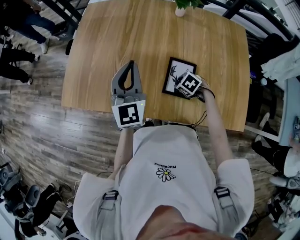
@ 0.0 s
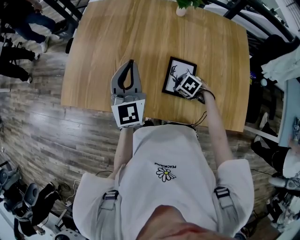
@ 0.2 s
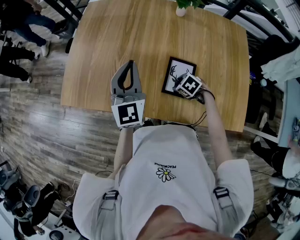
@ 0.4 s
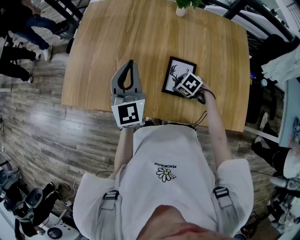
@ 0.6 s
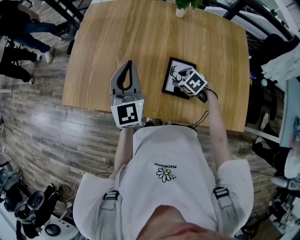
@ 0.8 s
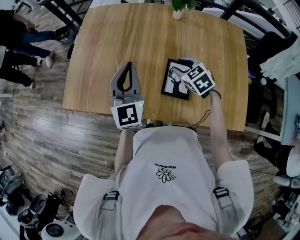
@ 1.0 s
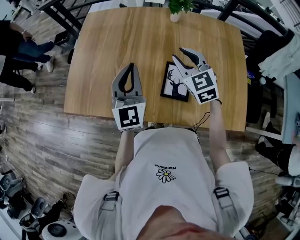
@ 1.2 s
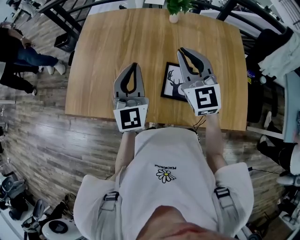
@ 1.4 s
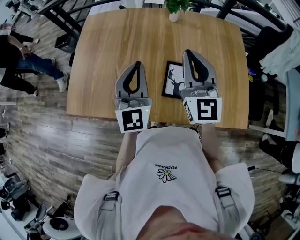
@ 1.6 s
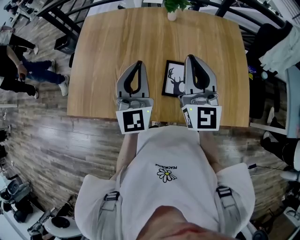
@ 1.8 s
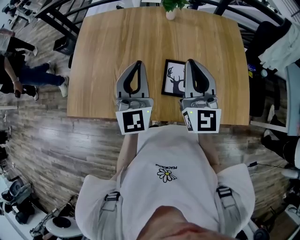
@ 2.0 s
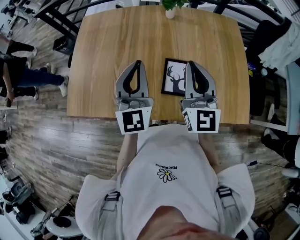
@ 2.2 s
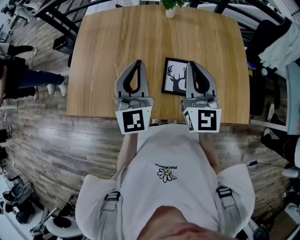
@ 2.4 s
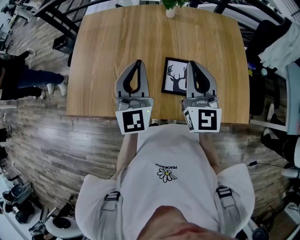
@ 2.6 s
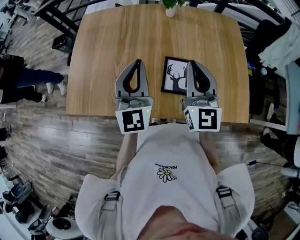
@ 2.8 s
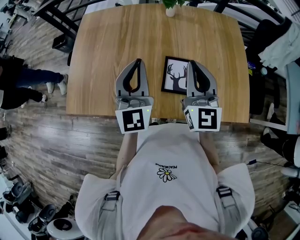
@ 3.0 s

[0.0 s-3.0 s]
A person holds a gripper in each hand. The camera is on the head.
0.0 to 1.6 s: The right gripper heads upward, covering about 40 cm, tilts its fingers roughly 80 degrees upward, and closes up. Meanwhile the left gripper shifts approximately 5 cm upward.
1.6 to 3.0 s: The right gripper moves approximately 5 cm.

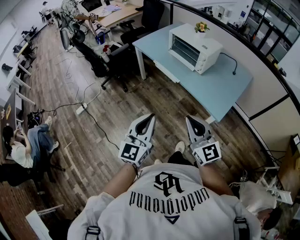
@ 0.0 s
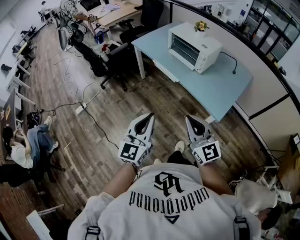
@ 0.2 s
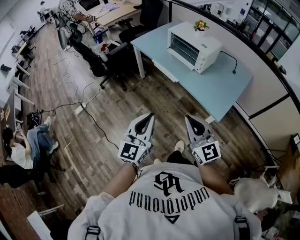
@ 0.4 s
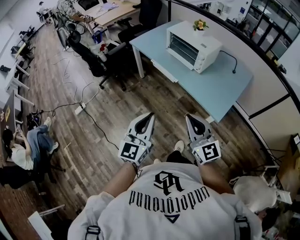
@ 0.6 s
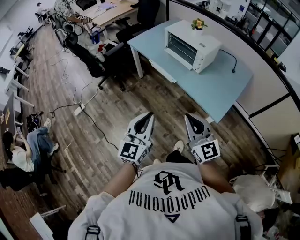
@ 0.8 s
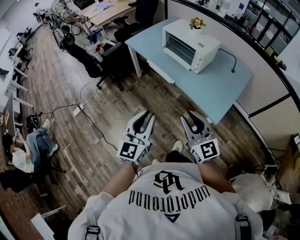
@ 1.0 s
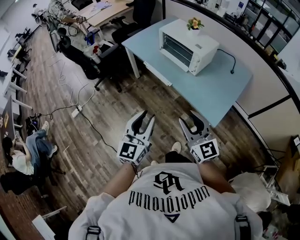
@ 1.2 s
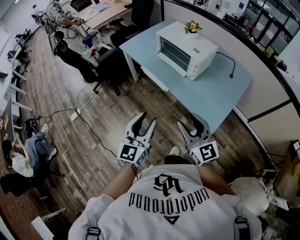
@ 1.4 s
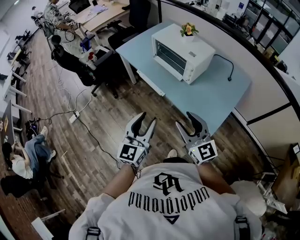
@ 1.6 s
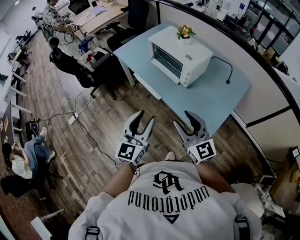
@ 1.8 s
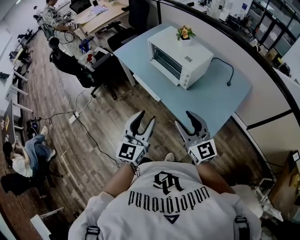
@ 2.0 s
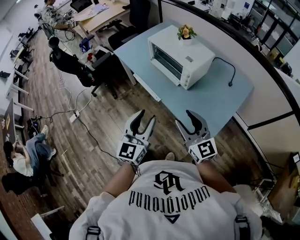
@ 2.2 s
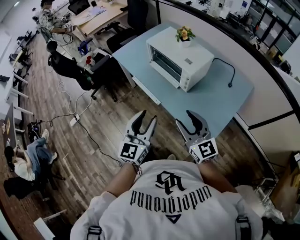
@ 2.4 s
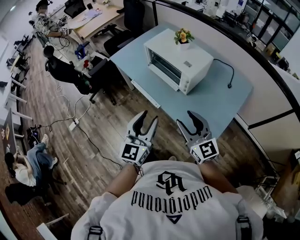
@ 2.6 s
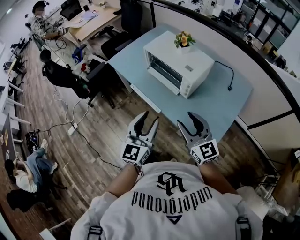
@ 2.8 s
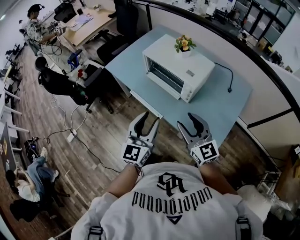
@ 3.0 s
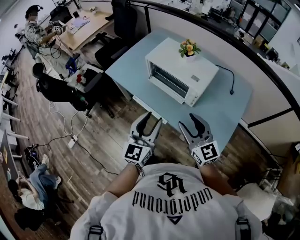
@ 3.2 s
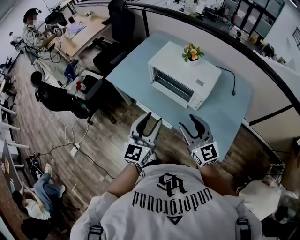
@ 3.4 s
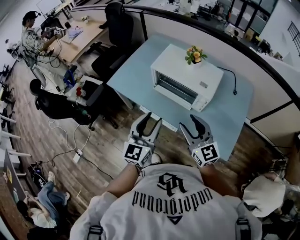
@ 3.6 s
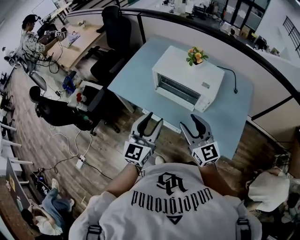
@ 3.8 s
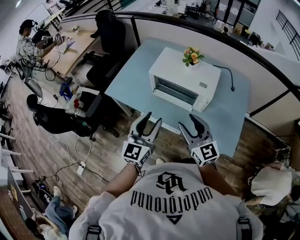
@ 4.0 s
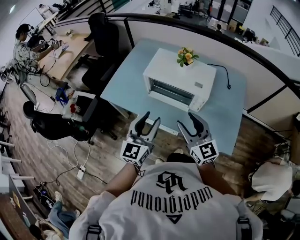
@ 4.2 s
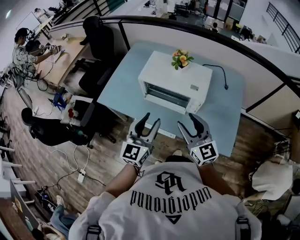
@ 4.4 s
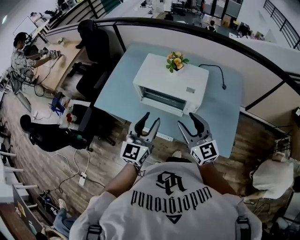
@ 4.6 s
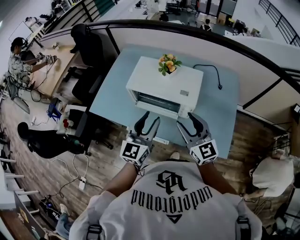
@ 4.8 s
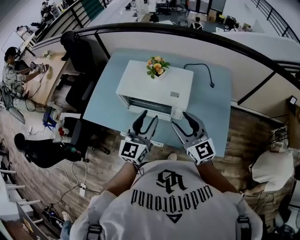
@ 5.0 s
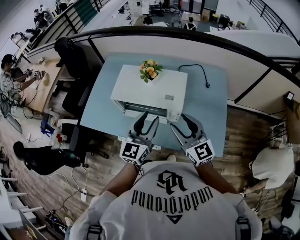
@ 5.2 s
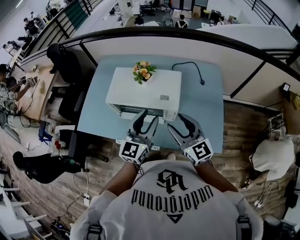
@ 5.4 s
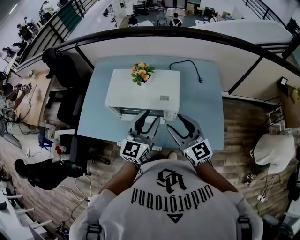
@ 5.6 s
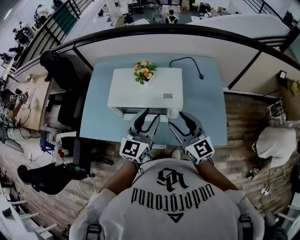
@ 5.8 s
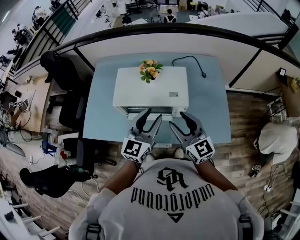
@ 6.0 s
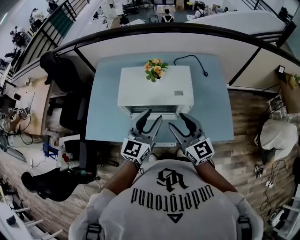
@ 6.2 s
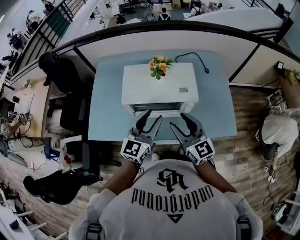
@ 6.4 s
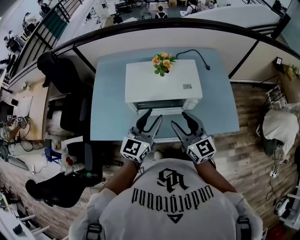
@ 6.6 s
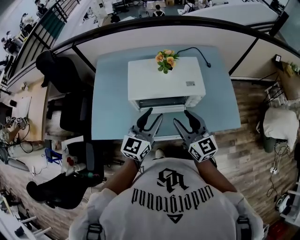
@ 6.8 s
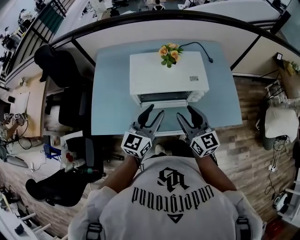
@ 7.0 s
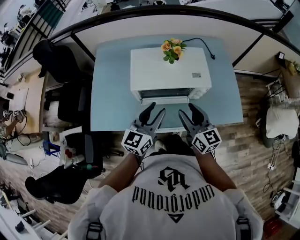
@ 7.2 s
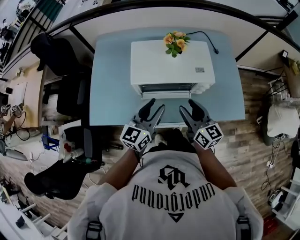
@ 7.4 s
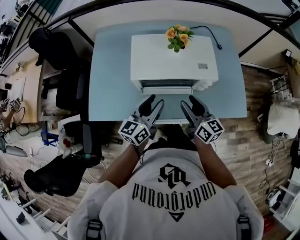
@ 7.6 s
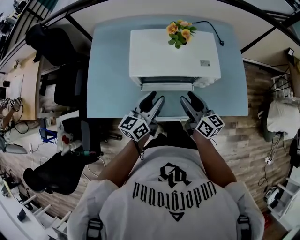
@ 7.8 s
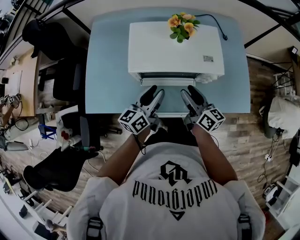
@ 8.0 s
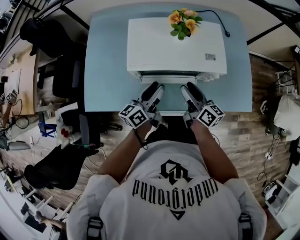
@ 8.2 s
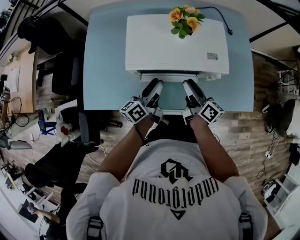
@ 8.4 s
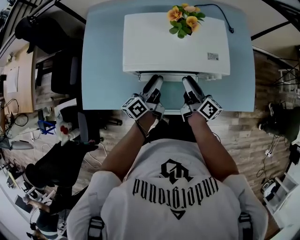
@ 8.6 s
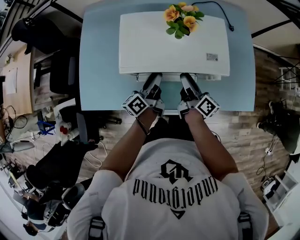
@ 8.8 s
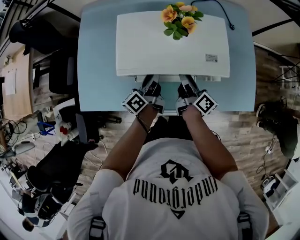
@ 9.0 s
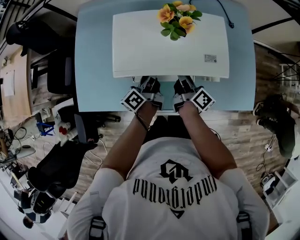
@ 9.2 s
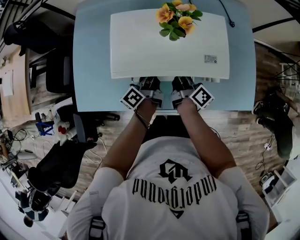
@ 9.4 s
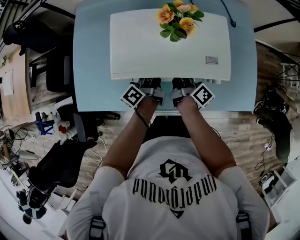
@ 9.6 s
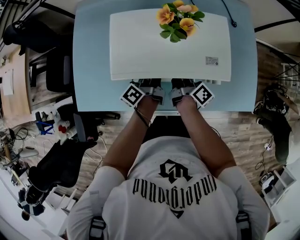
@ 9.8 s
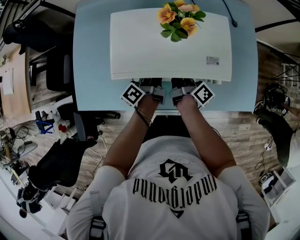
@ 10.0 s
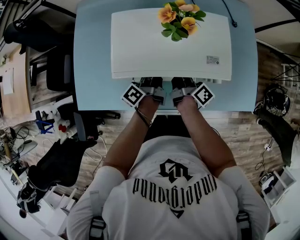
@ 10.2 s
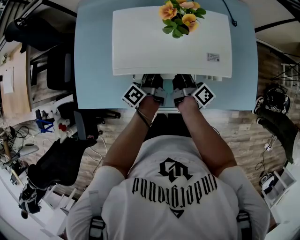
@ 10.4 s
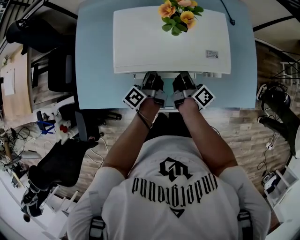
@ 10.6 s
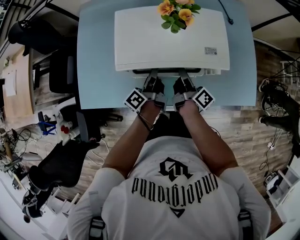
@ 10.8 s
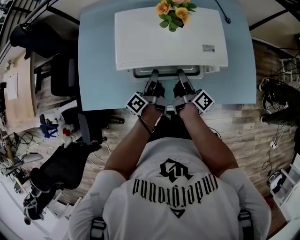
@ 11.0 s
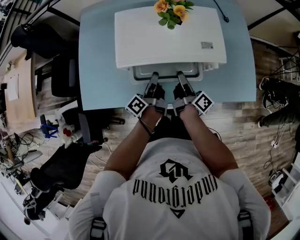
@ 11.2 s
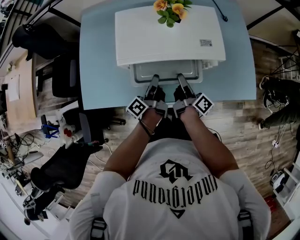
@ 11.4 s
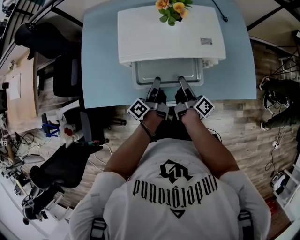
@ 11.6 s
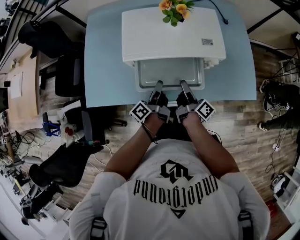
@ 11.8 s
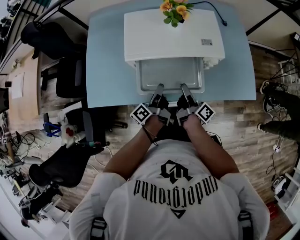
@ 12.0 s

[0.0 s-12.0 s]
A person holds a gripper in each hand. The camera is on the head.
0.0 to 1.6 s: Both grippers travel together forward and to the right, approximately 20 cm. The left gripper opens its fingers. Meanwhile the right gripper opens up.
1.6 to 3.0 s: Both grippers travel together forward, about 20 cm.
3.0 to 4.4 s: Both grippers move forward and to the left, about 15 cm. The left gripper swivels approximately 20 degrees, while the right gripper rotates some 20 degrees.
4.4 to 6.0 s: The right gripper heads forward, covering approximately 10 cm. Meanwhile the left gripper heads forward and to the right, covering approximately 15 cm, and swivels roughly 20 degrees.
6.0 to 7.6 s: The left gripper is displaced to the left and downward by about 20 cm, and turns by some 30 degrees, while the right gripper goes about 15 cm downward and to the left, and rotates about 30 degrees.
7.6 to 9.0 s: The left gripper goes roughly 20 cm downward and forward, and twists approximately 40 degrees counterclockwise, seen from behind, while the right gripper heads forward and downward, covering about 15 cm, and swivels some 40 degrees.
9.0 to 10.4 s: The grippers make only small movements.
10.4 to 12.0 s: The grippers both shift backward by roughly 15 cm.

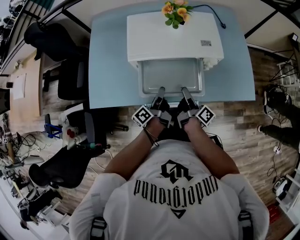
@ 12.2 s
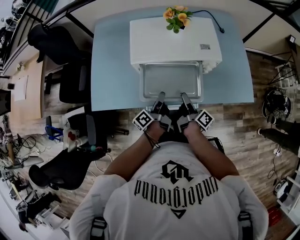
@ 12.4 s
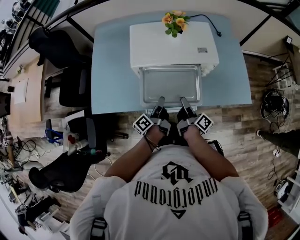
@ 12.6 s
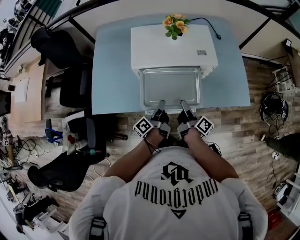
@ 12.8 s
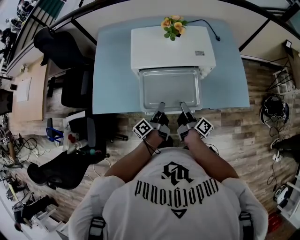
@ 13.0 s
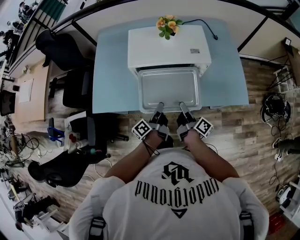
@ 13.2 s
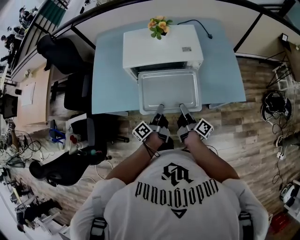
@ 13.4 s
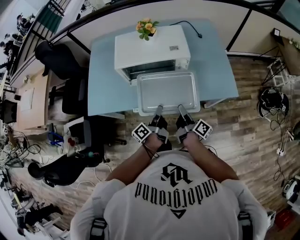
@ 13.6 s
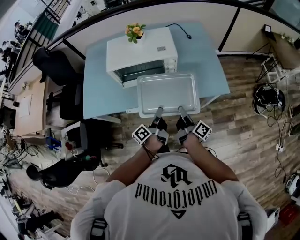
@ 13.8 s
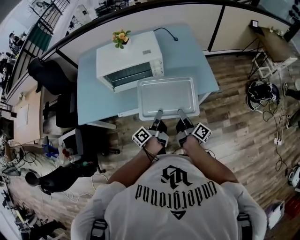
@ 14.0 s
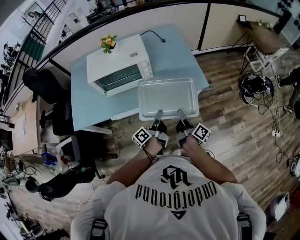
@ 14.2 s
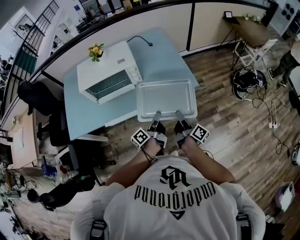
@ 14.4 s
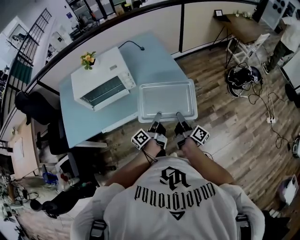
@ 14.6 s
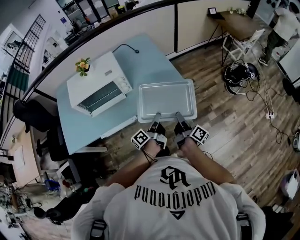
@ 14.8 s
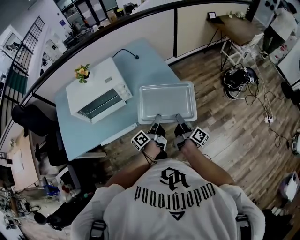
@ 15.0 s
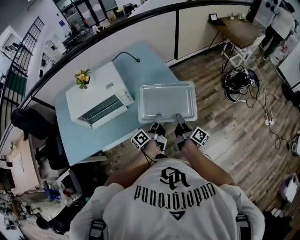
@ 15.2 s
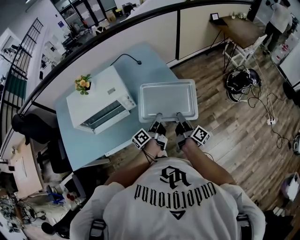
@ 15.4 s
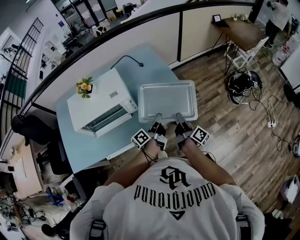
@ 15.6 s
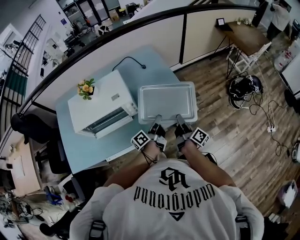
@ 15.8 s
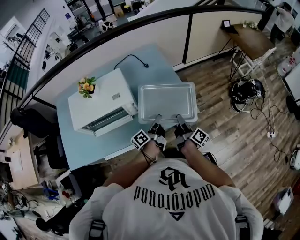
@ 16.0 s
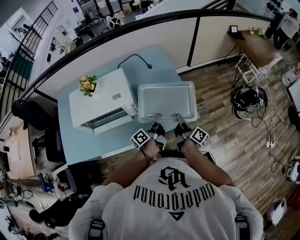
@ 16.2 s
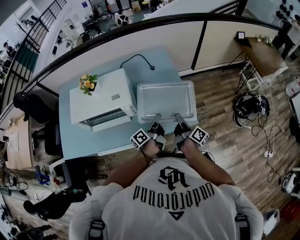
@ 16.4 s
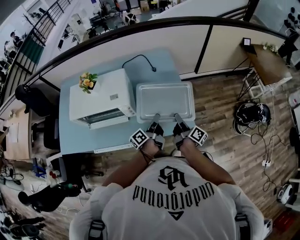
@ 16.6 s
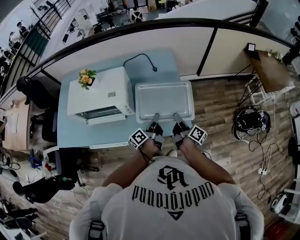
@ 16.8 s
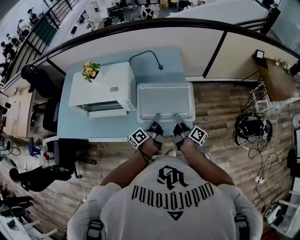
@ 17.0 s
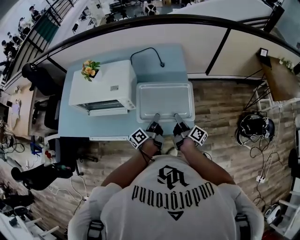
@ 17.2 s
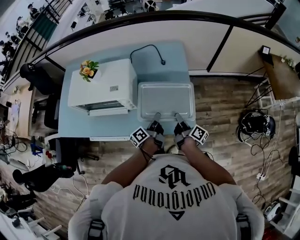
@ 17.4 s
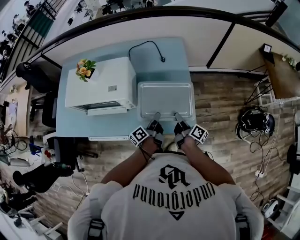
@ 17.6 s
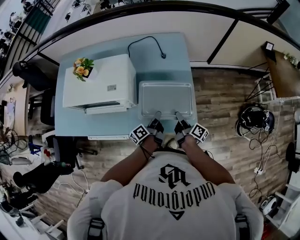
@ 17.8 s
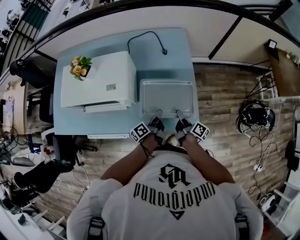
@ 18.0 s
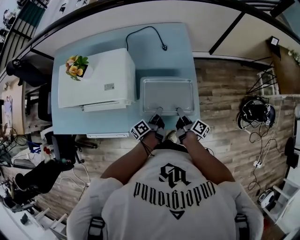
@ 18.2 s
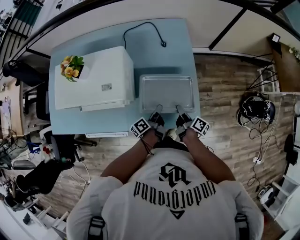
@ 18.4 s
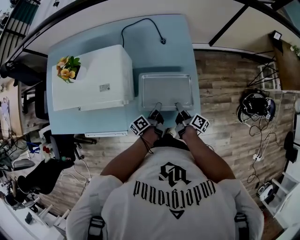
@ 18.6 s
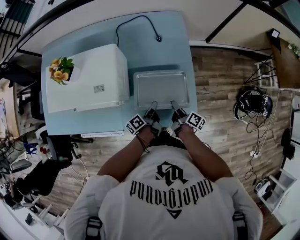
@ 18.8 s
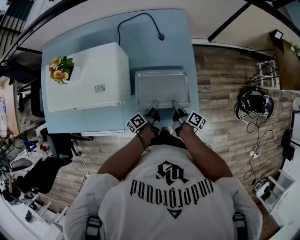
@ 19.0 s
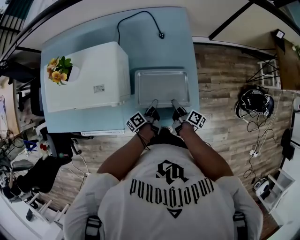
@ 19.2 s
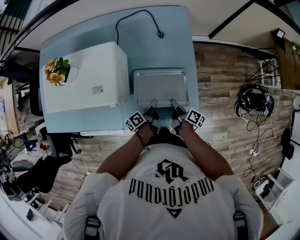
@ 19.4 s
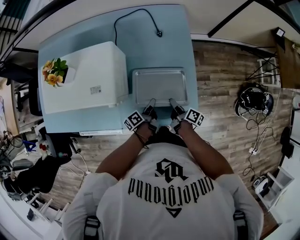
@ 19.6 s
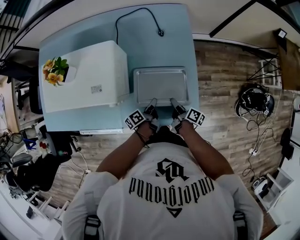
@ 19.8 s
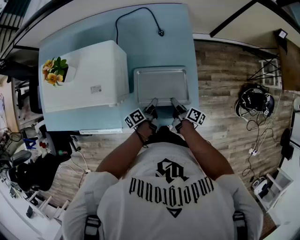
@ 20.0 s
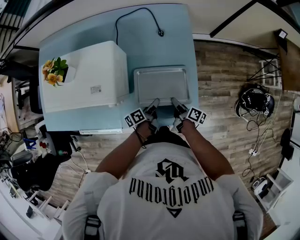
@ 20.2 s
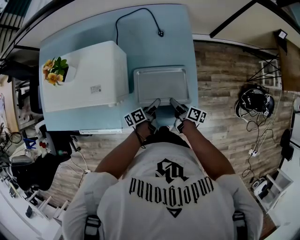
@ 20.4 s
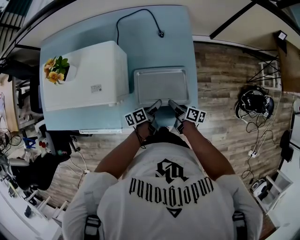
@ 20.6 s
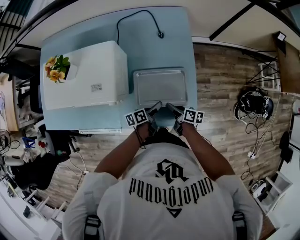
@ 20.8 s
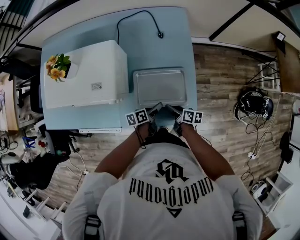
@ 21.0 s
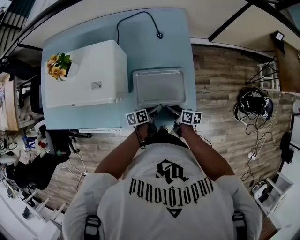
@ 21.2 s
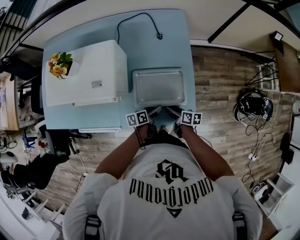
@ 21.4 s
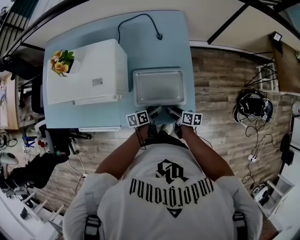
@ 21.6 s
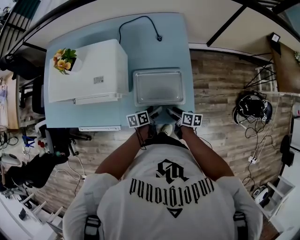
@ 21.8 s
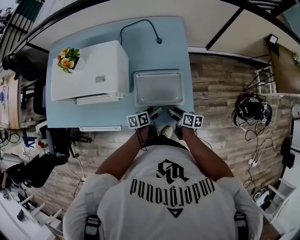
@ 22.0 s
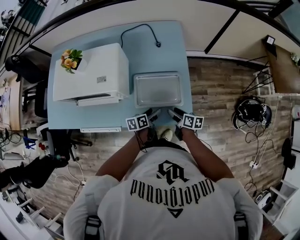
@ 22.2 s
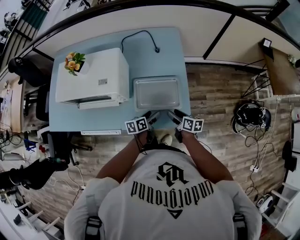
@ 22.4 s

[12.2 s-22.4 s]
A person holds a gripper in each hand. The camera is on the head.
12.2 to 13.6 s: The two grippers go approximately 15 cm backward and to the right.
13.6 to 15.2 s: The grippers both shift to the right by some 30 cm. The left gripper rotates approximately 30 degrees. The right gripper changes its angle by some 20 degrees.
15.2 to 16.6 s: Both grippers move forward, about 20 cm.
16.6 to 18.0 s: The grippers both shift downward by approximately 10 cm.
18.0 to 19.4 s: The two grippers go roughly 10 cm downward.
19.4 to 21.0 s: The right gripper swivels about 30 degrees. Meanwhile the left gripper rotates about 30 degrees, and opens up.
21.0 to 22.4 s: The grippers both shift upward by about 10 cm.
